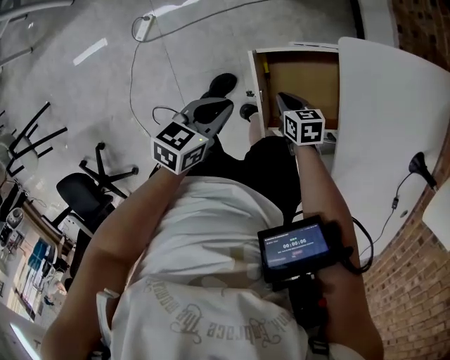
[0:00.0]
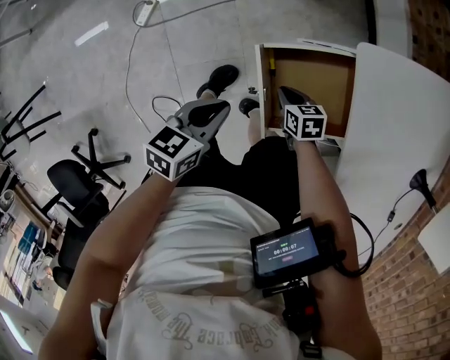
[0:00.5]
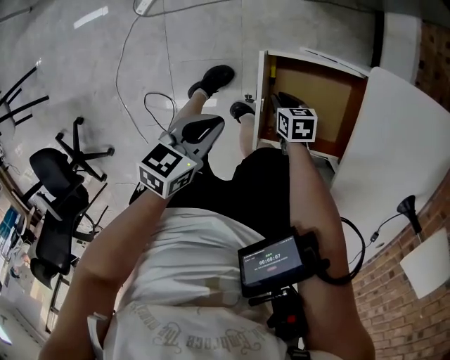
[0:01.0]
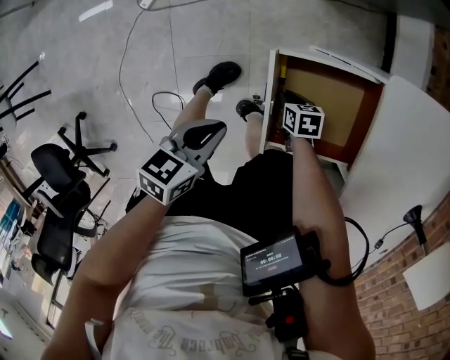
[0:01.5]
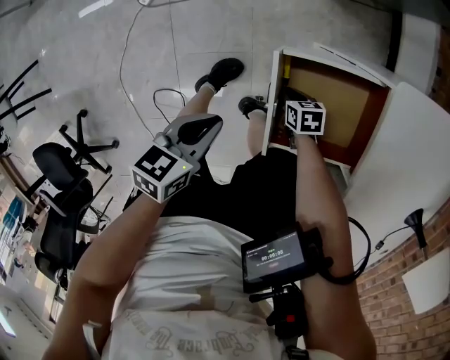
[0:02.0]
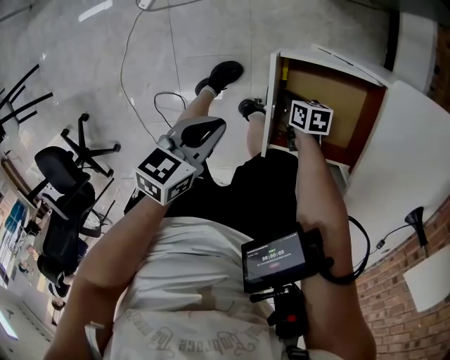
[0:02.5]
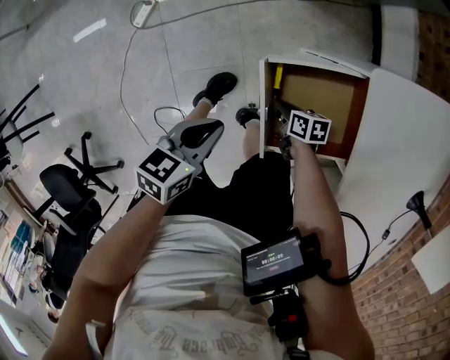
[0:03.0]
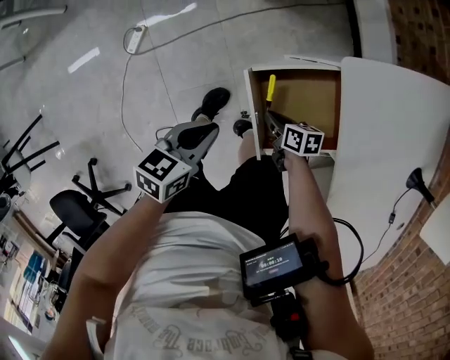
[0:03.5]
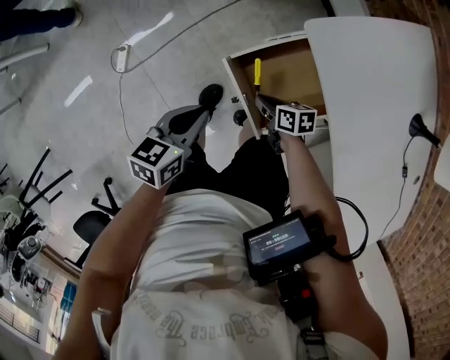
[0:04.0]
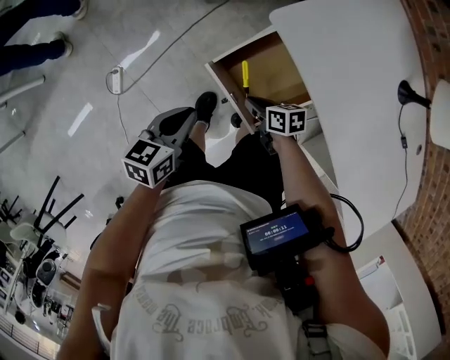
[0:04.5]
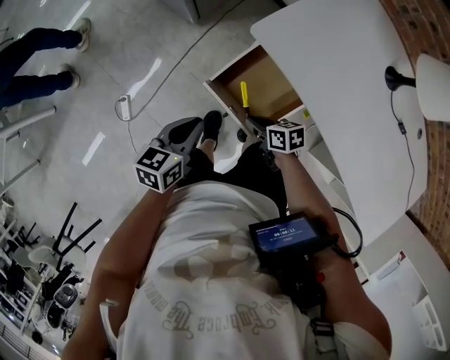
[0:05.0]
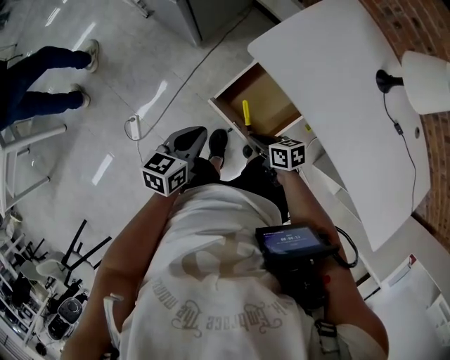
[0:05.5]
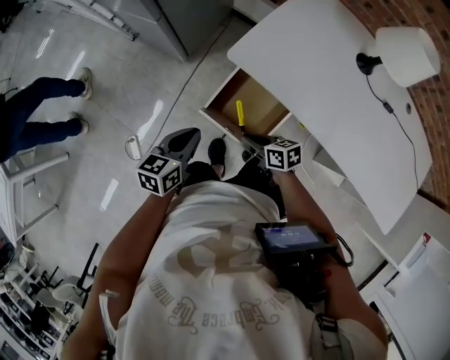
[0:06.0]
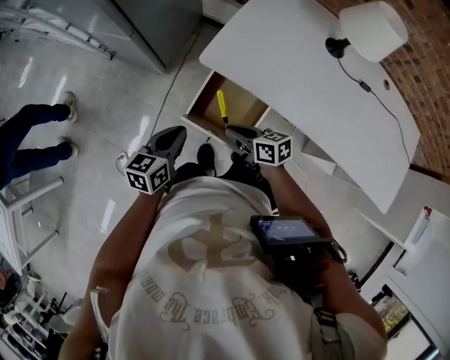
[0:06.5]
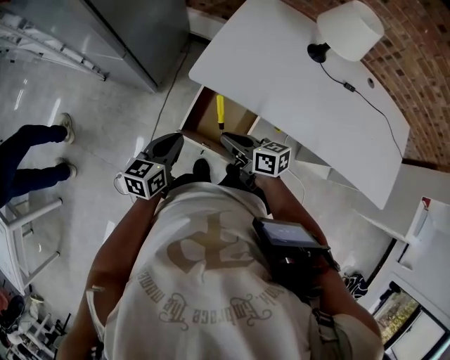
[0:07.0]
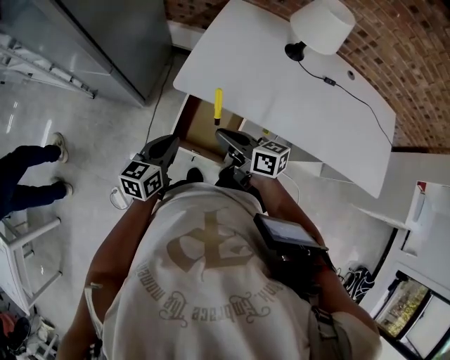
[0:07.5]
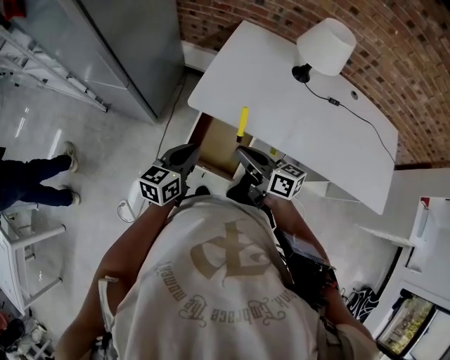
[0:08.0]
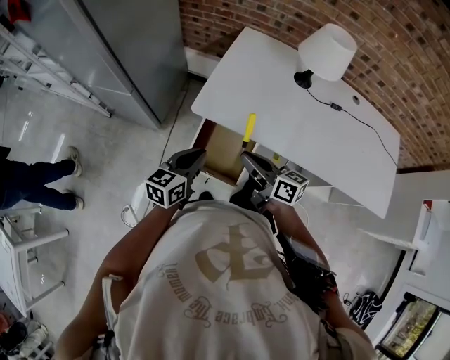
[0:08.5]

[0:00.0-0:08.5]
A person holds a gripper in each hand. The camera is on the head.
0:00.0 to 0:02.0: The right gripper is displaced downward by approximately 15 cm, while the left gripper travels downward by about 5 cm.
0:02.0 to 0:04.0: The right gripper moves upward, roughly 15 cm, and swivels about 40 degrees. The left gripper travels upward by roughly 10 cm, and turns by about 20 degrees.
0:04.0 to 0:06.5: The right gripper travels upward by some 20 cm, and changes its angle by roughly 40 degrees. The left gripper travels upward by roughly 10 cm, and swivels some 30 degrees.
0:06.5 to 0:08.5: The right gripper shifts about 15 cm upward and to the right, and swivels about 30 degrees, while the left gripper goes about 10 cm to the right and upward.

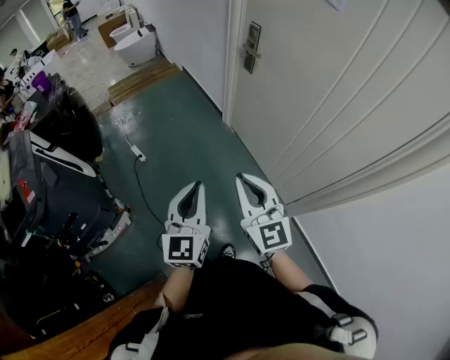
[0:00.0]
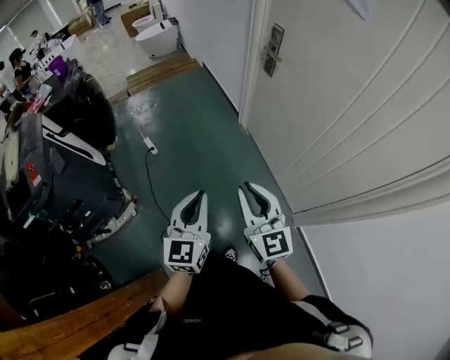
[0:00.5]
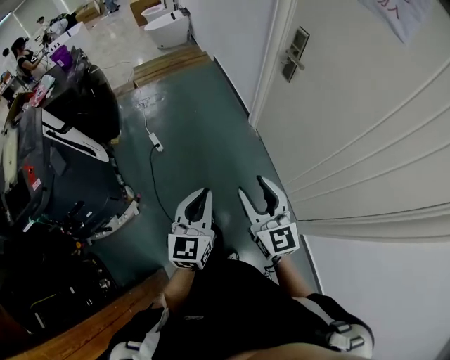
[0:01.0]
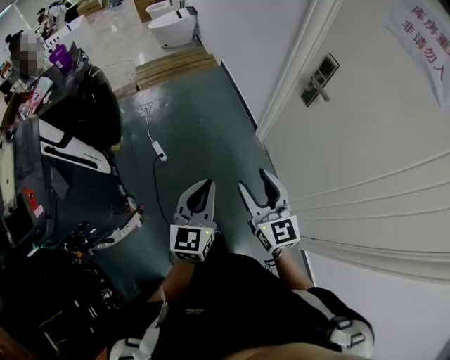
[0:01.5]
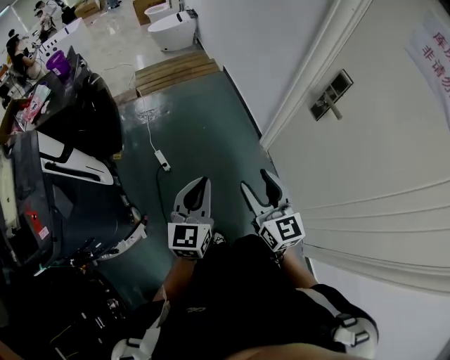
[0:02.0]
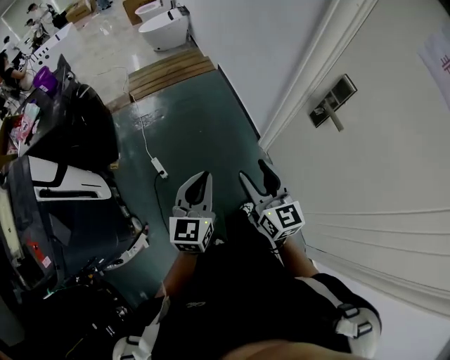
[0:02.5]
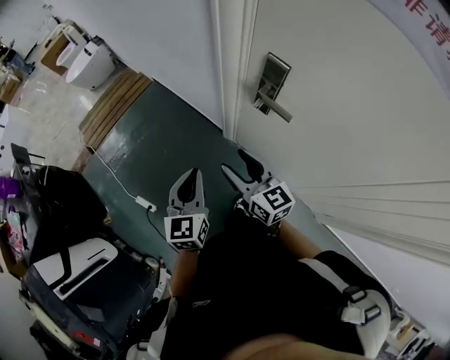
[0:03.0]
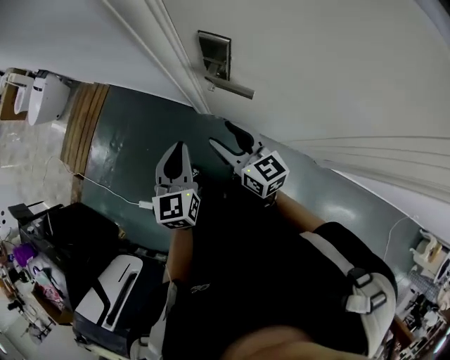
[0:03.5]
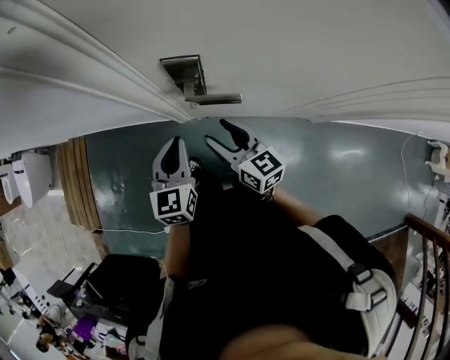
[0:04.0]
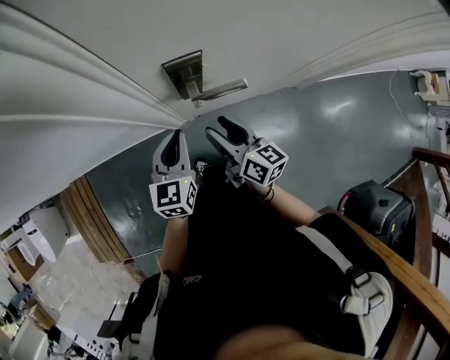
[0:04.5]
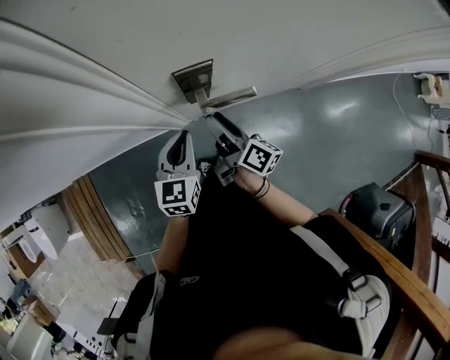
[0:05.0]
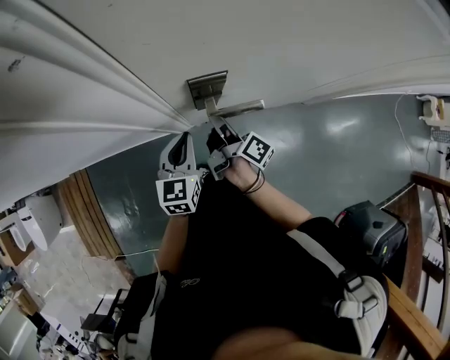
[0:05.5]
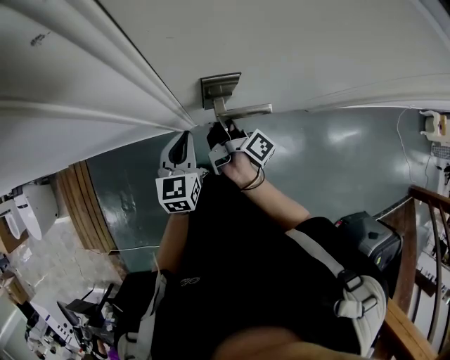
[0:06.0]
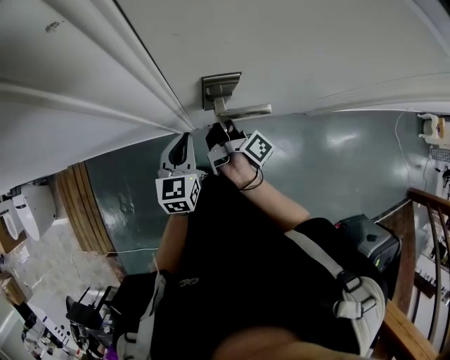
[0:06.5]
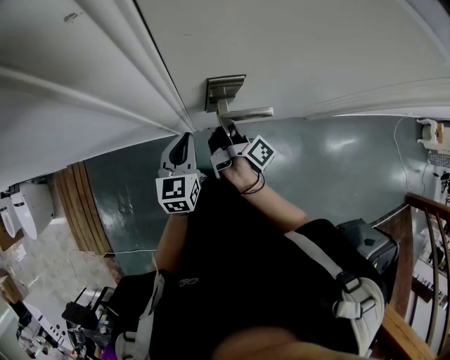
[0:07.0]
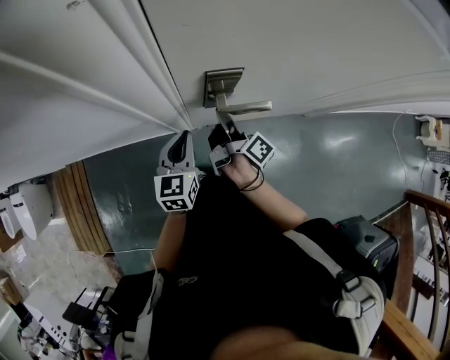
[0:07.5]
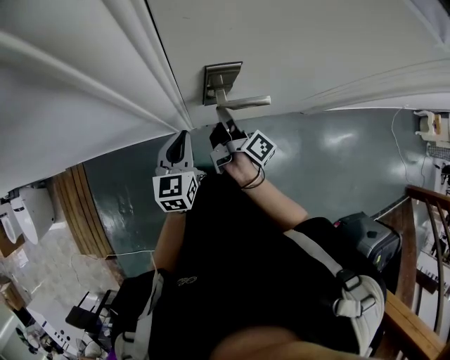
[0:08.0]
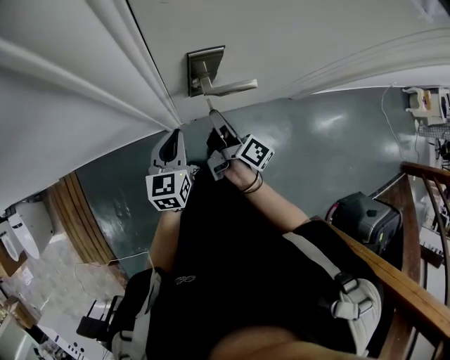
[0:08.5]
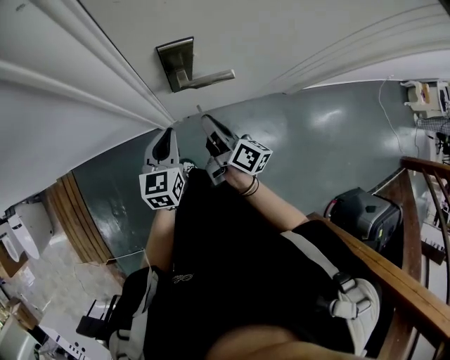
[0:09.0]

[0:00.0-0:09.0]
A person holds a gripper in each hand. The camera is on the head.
0:00.0 to 0:02.0: The two grippers go roughly 35 cm forward. The right gripper opens its fingers.
0:02.0 to 0:04.5: The two grippers travel together, some 50 cm. The right gripper swivels some 80 degrees, while the left gripper turns by approximately 80 degrees.
0:04.5 to 0:07.0: The right gripper heads forward, covering some 10 cm, twists roughly 50 degrees clockwise, seen from behind, and closes its fingers.
0:07.0 to 0:09.0: The left gripper goes roughly 5 cm backward, while the right gripper shifts roughly 10 cm backward, and swivels about 30 degrees.

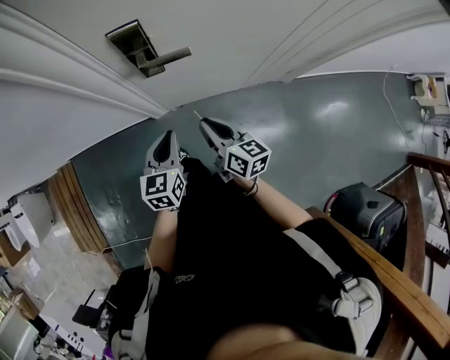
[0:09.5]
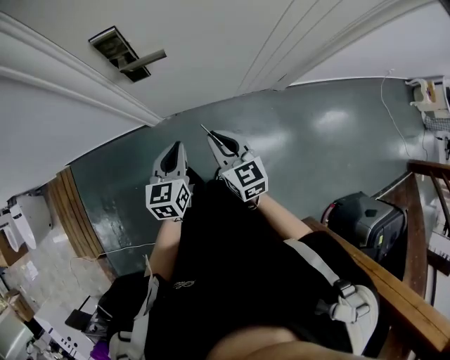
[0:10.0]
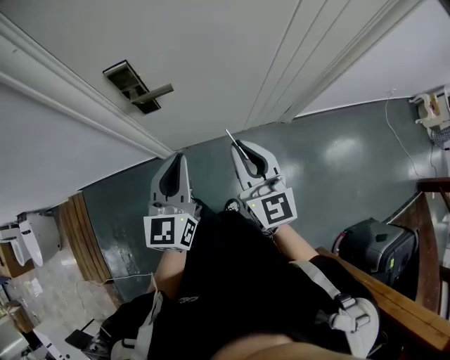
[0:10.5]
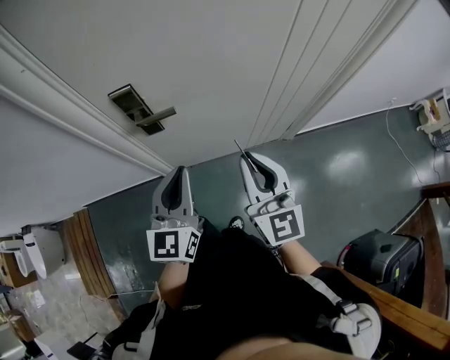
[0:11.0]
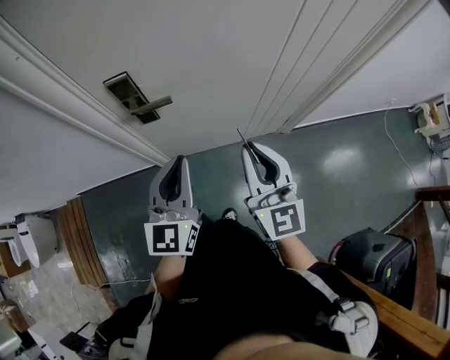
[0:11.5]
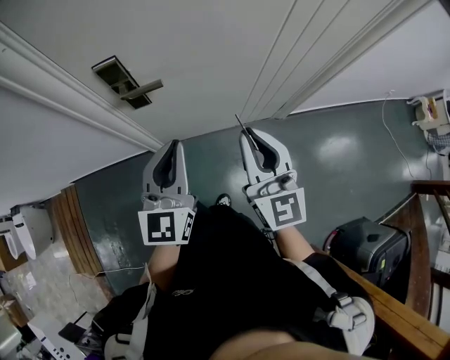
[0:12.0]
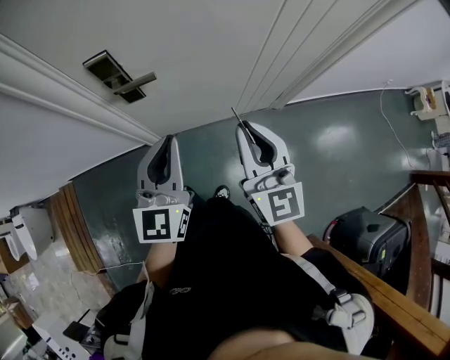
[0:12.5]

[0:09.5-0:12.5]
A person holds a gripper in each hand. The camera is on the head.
0:09.5 to 0:11.0: Both grippers travel together upward and to the right, roughly 25 cm. The right gripper swivels about 50 degrees. Meanwhile the left gripper rotates approximately 30 degrees.
0:11.0 to 0:12.5: There are only small adjustments of the grippers.

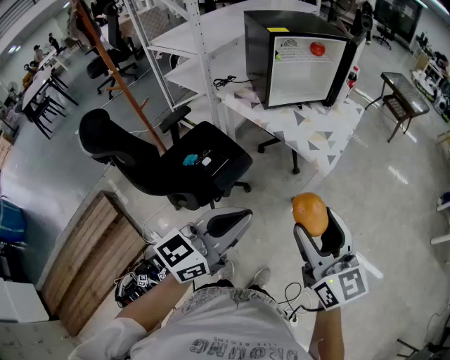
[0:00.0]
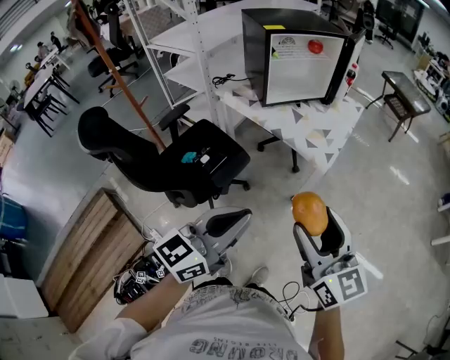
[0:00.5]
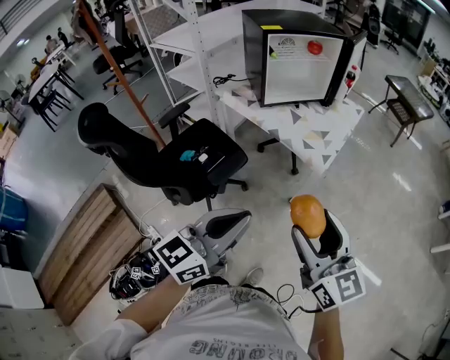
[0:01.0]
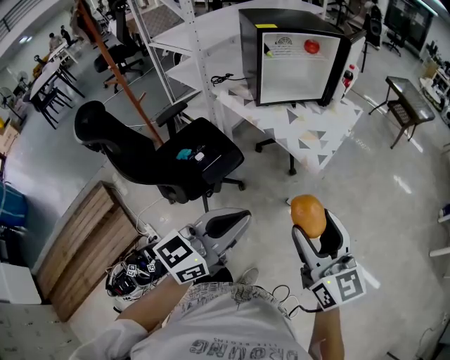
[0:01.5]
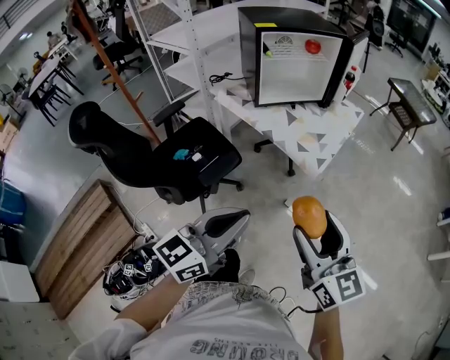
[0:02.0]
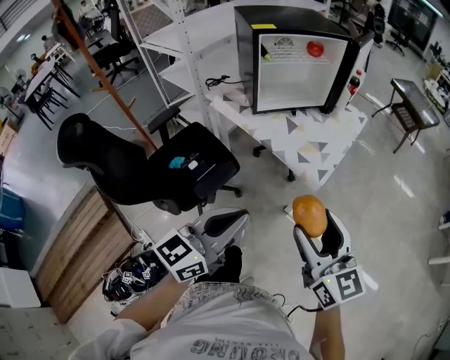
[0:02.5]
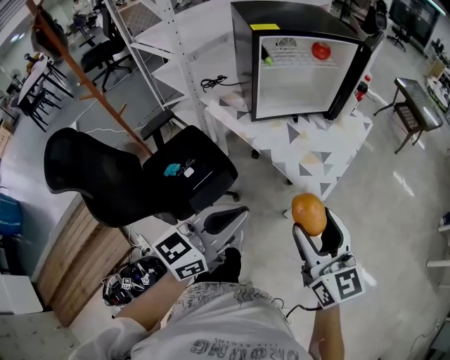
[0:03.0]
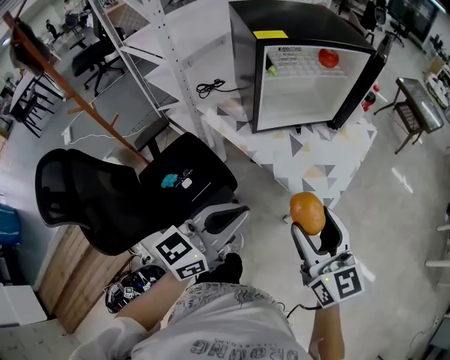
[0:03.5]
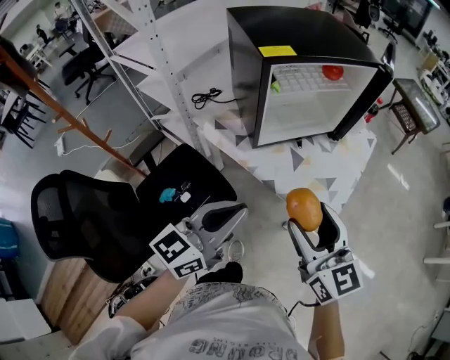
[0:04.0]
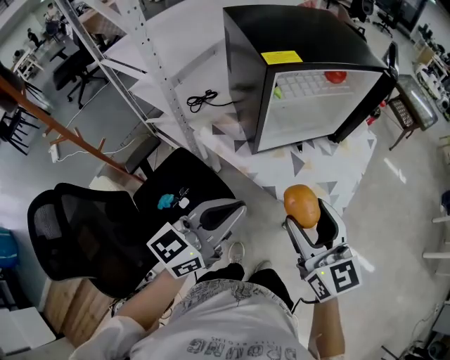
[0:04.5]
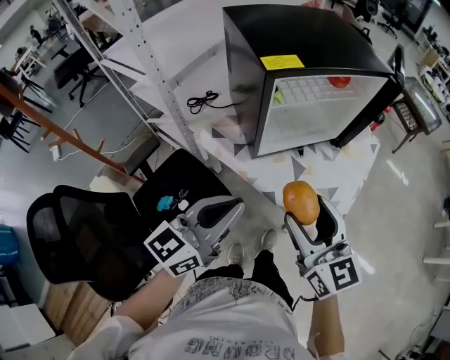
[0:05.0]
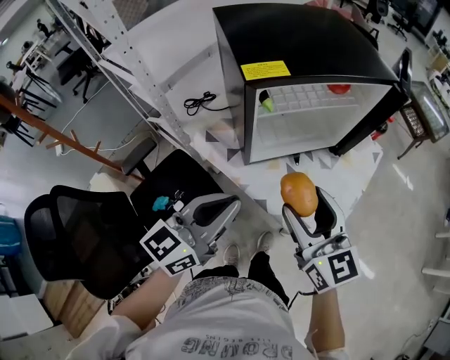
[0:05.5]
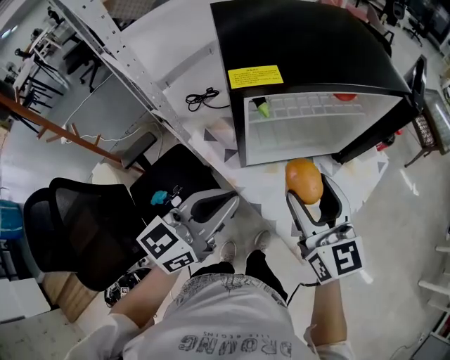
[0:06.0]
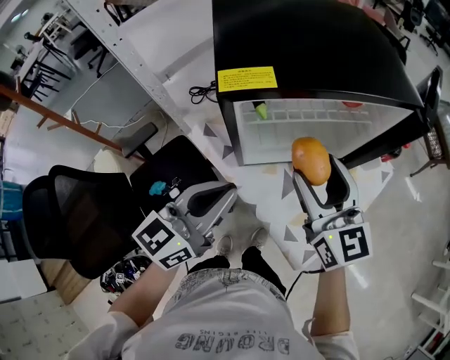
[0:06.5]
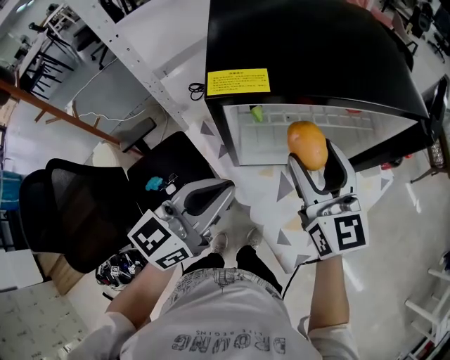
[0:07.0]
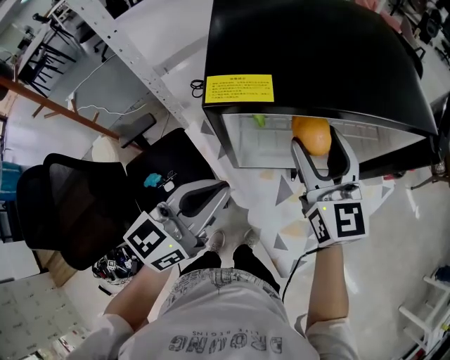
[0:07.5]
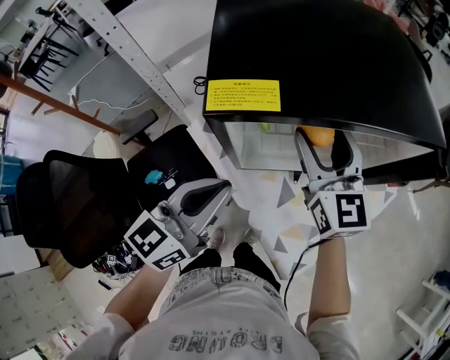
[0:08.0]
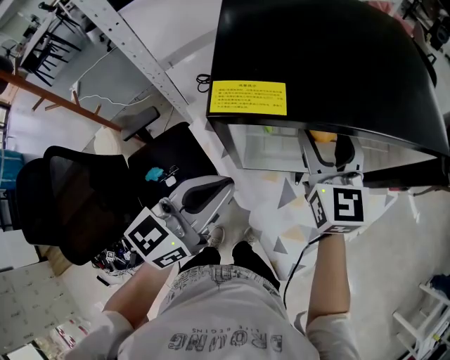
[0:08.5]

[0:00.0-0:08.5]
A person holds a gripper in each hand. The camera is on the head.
0:00.0 to 0:02.0: Both grippers move to the right, about 10 cm.
0:02.0 to 0:04.0: Both grippers move forward, roughly 30 cm.
0:04.0 to 0:06.5: The grippers both shift forward by approximately 25 cm.
0:06.5 to 0:08.5: The left gripper is displaced forward by some 5 cm. Meanwhile the right gripper is displaced forward by roughly 15 cm.
